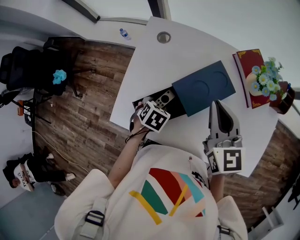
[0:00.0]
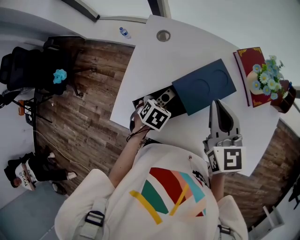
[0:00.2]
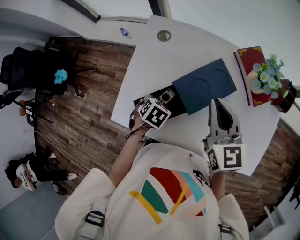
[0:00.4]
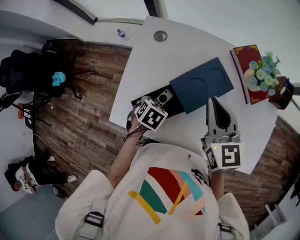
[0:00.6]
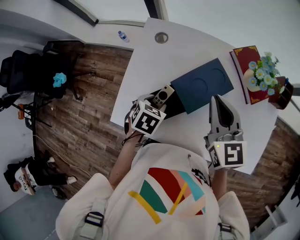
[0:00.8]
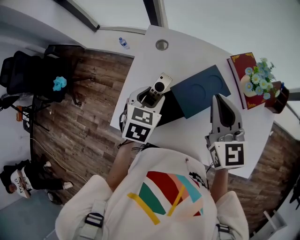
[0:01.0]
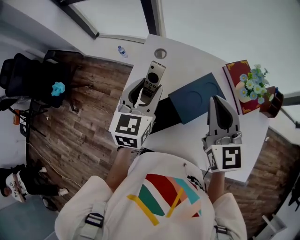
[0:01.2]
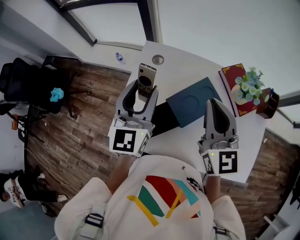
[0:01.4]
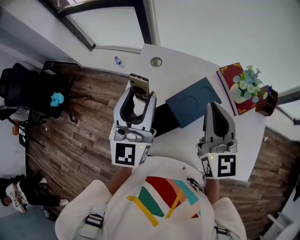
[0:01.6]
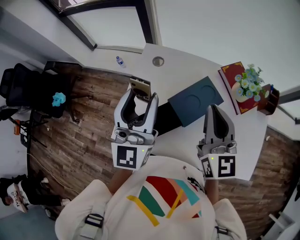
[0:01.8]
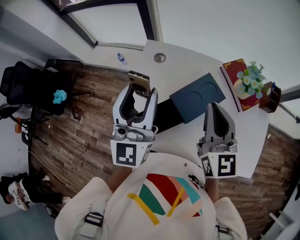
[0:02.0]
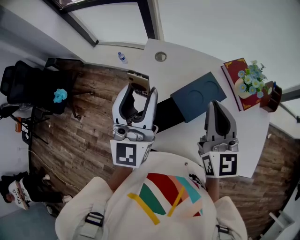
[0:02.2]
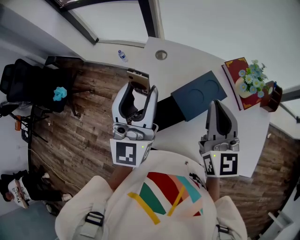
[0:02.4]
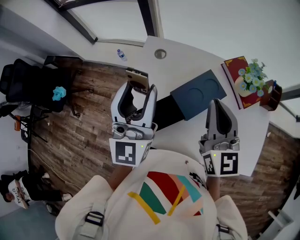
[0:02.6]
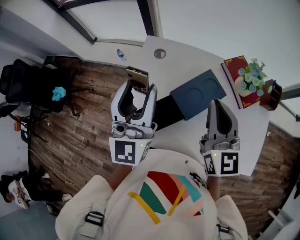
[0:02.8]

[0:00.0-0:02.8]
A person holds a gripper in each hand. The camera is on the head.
0:00.0 to 0:01.4: The right gripper moves upward, roughly 10 cm. Meanwhile the left gripper shifts approximately 30 cm upward, and angles its fingers upward, by roughly 70 degrees.
0:01.4 to 0:02.8: The left gripper ends up about 5 cm from where it was.

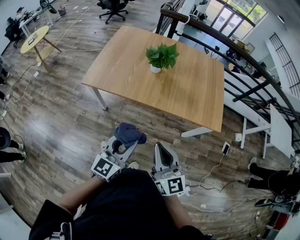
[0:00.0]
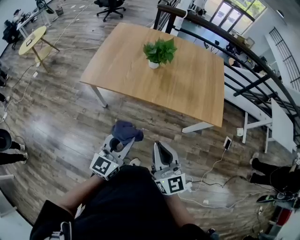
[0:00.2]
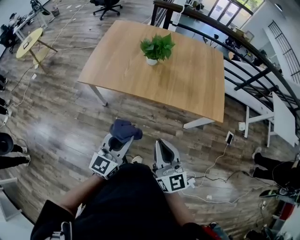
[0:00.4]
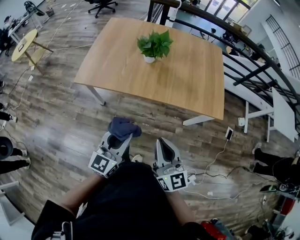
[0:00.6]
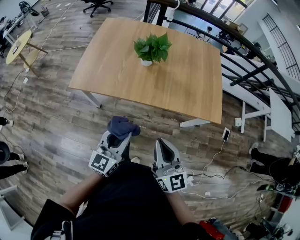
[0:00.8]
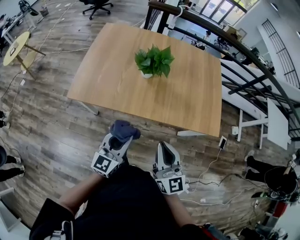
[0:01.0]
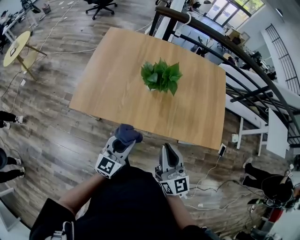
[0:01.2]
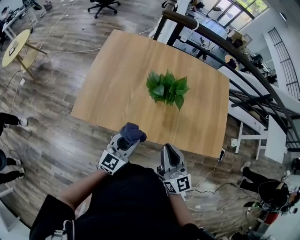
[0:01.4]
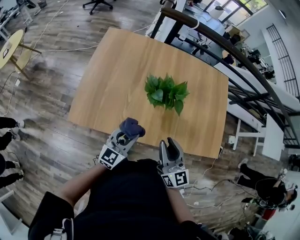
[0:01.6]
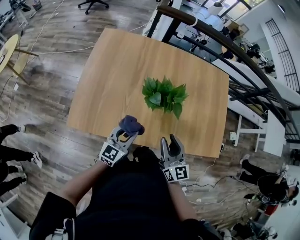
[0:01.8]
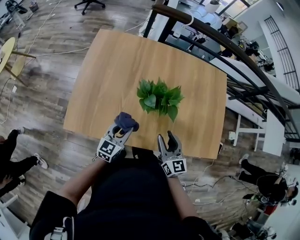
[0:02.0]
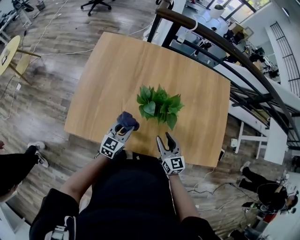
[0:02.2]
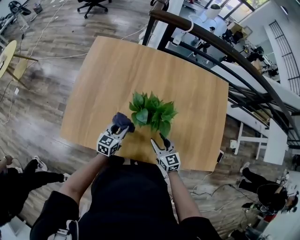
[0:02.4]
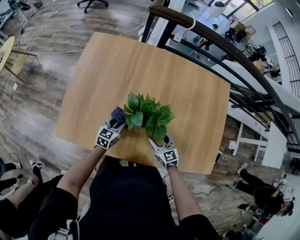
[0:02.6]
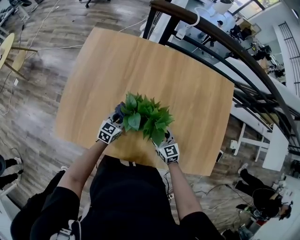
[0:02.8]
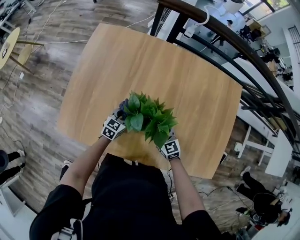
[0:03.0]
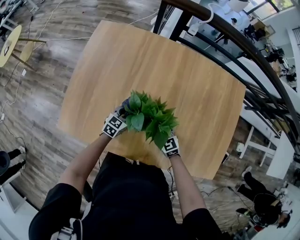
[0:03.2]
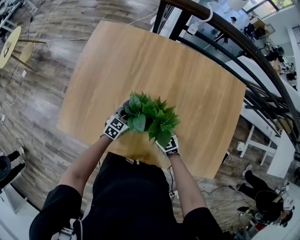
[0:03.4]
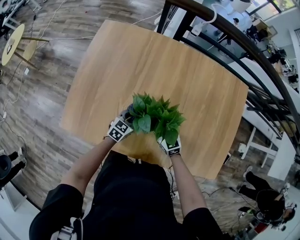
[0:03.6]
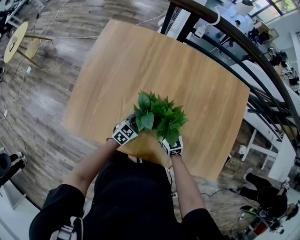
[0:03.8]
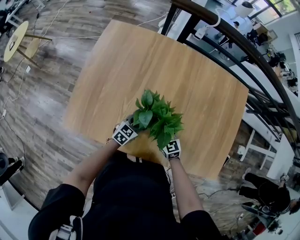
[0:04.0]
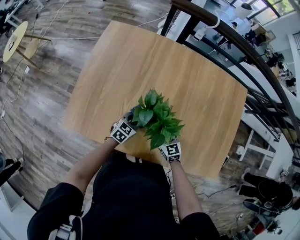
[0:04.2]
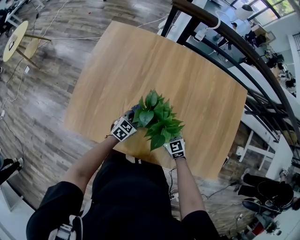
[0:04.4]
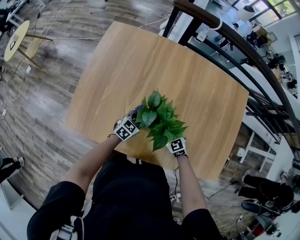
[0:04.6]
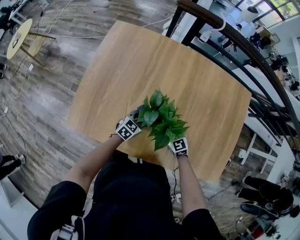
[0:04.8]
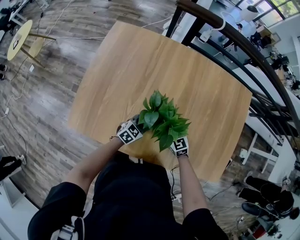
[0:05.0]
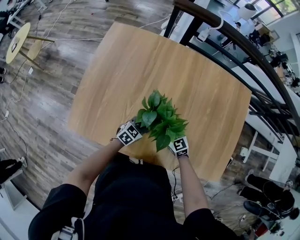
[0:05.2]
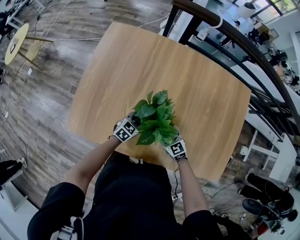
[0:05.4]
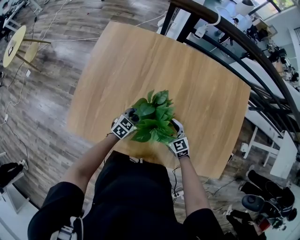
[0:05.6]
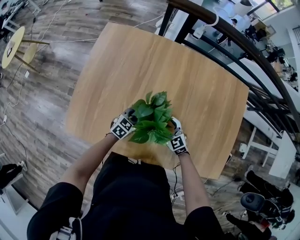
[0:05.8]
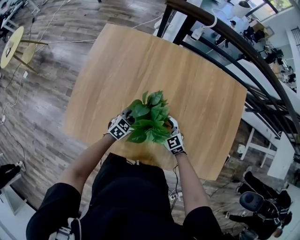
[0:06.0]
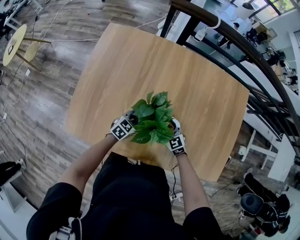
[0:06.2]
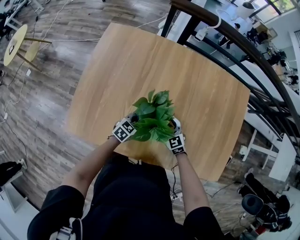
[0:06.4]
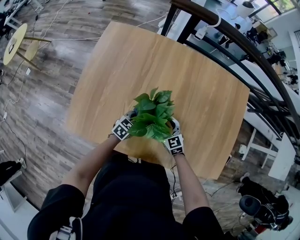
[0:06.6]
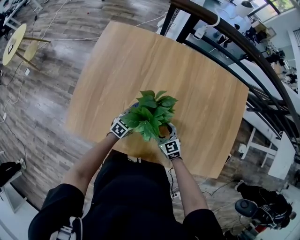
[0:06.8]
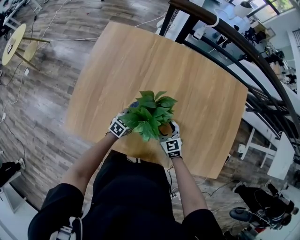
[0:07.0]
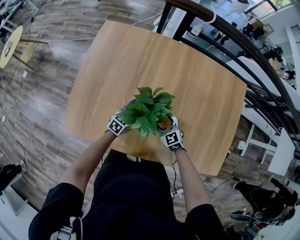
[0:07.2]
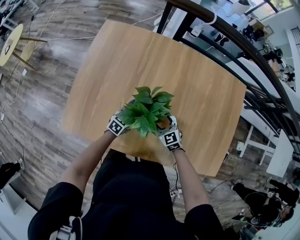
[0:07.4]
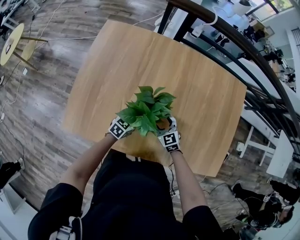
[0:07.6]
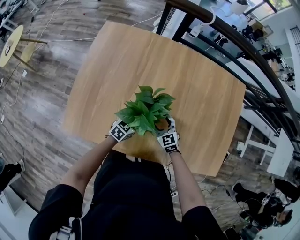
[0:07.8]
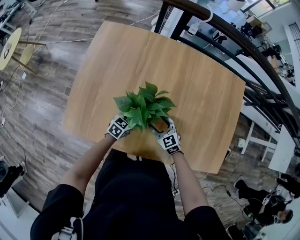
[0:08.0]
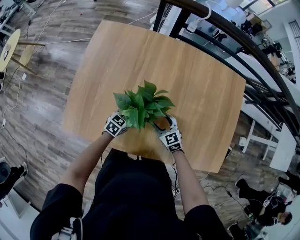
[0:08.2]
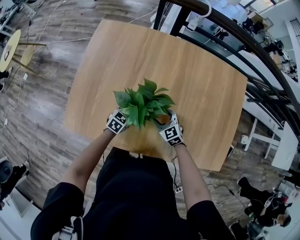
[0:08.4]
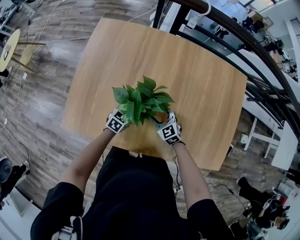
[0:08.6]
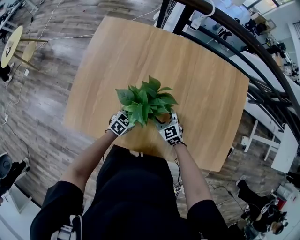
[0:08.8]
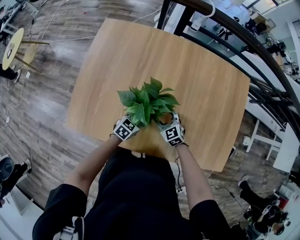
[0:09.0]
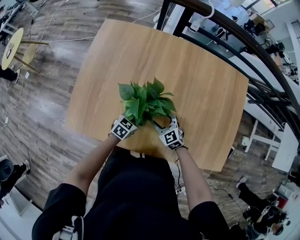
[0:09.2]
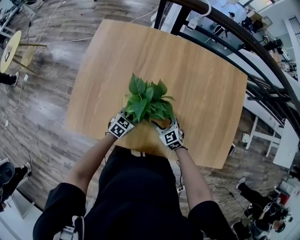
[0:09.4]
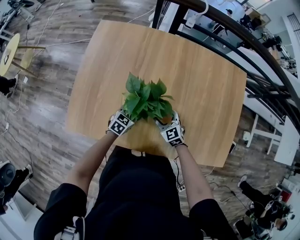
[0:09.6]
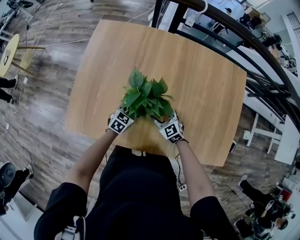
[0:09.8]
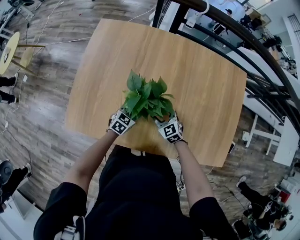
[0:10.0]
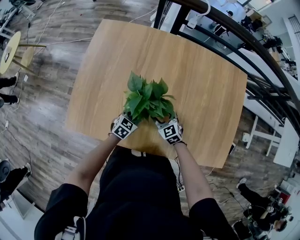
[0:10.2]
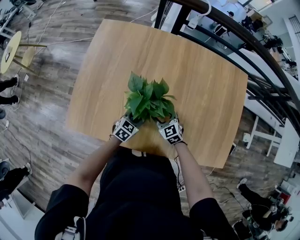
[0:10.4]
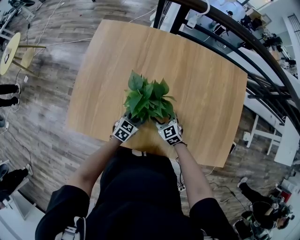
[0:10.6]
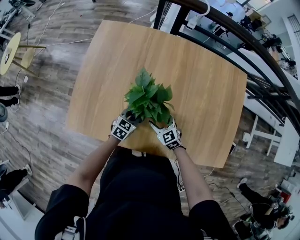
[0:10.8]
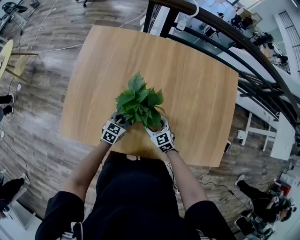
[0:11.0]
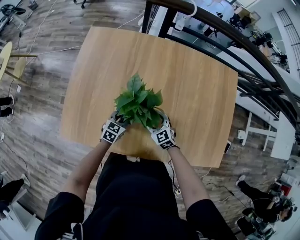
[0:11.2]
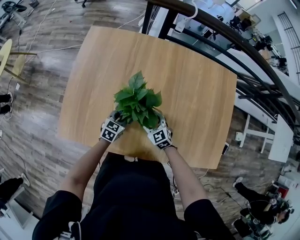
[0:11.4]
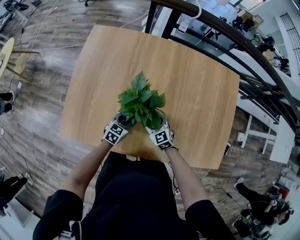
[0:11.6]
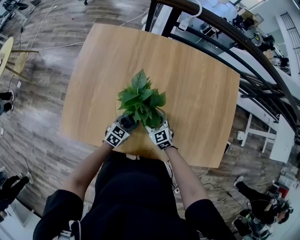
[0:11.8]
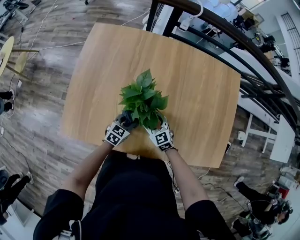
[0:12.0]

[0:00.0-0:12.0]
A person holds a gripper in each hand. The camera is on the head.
0:00.0 to 0:01.6: The two grippers go about 30 cm forward.
0:01.6 to 0:03.0: The two grippers go some 30 cm downward and forward. The left gripper turns by roughly 30 degrees. Meanwhile the right gripper turns by about 40 degrees, and opens its fingers.
0:04.4 to 0:12.0: There are only small adjustments of the grippers.

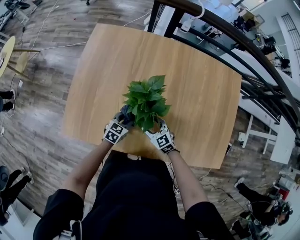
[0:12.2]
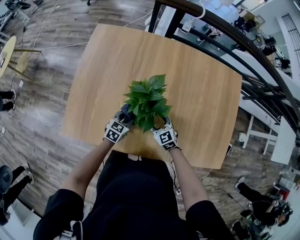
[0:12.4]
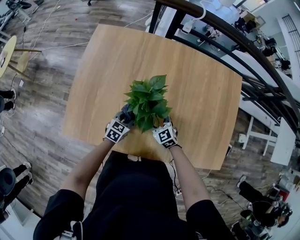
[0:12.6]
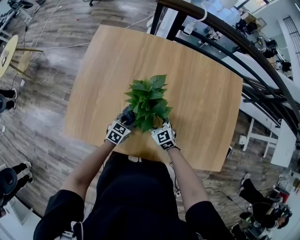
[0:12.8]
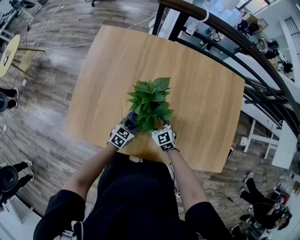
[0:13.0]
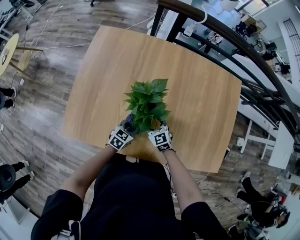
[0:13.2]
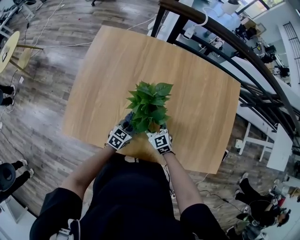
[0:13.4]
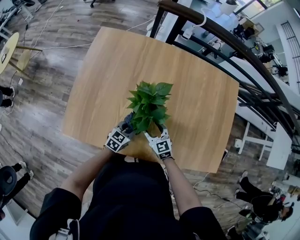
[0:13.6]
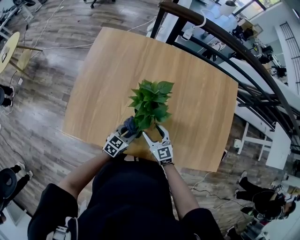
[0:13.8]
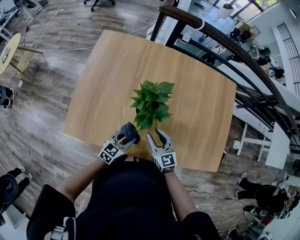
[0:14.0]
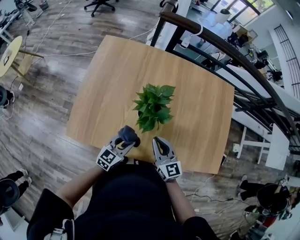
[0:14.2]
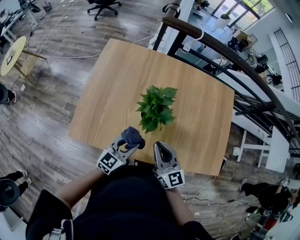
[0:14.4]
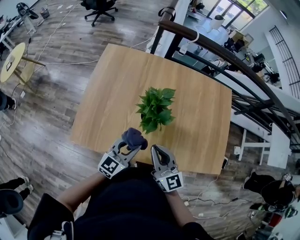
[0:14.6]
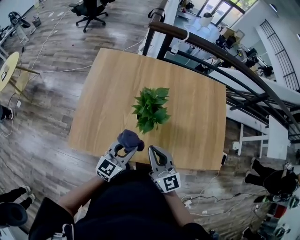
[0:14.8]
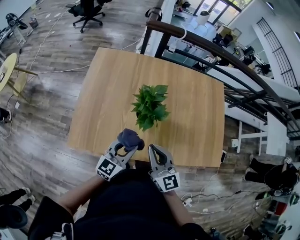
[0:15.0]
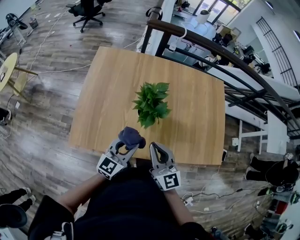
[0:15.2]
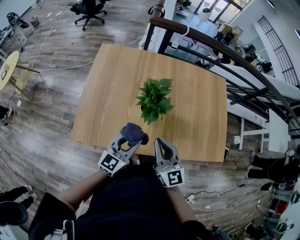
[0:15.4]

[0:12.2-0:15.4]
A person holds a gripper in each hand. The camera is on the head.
0:12.2 to 0:13.8: The left gripper travels backward by some 5 cm. Meanwhile the right gripper shifts approximately 5 cm upward.
0:13.8 to 0:15.4: The right gripper moves upward and backward, about 20 cm, changes its angle by approximately 30 degrees, and closes. The left gripper moves upward, about 20 cm, and changes its angle by some 30 degrees.

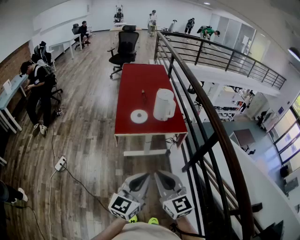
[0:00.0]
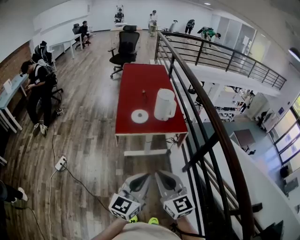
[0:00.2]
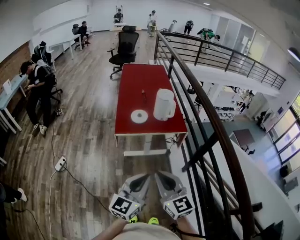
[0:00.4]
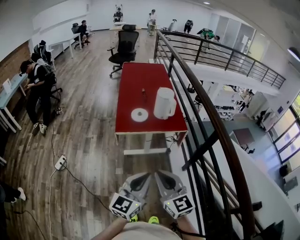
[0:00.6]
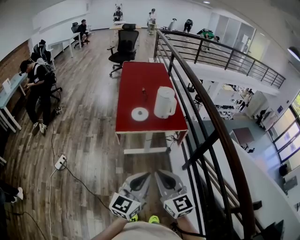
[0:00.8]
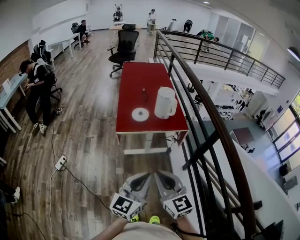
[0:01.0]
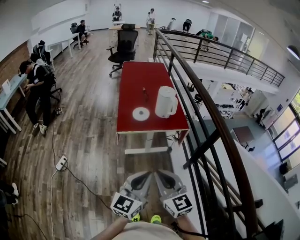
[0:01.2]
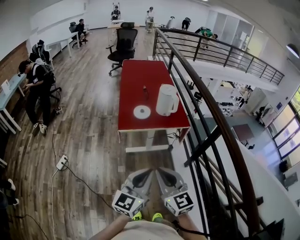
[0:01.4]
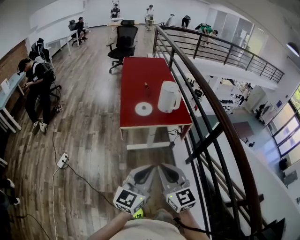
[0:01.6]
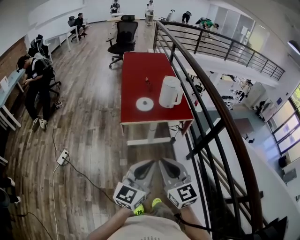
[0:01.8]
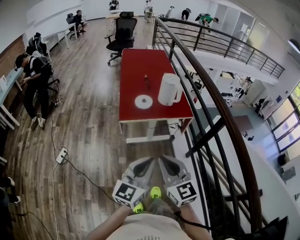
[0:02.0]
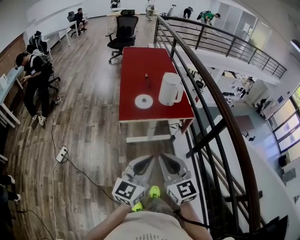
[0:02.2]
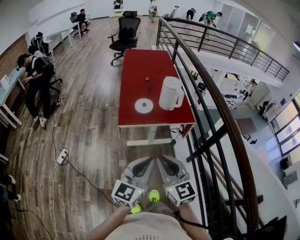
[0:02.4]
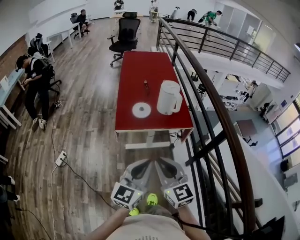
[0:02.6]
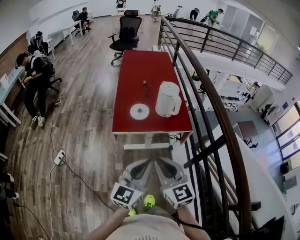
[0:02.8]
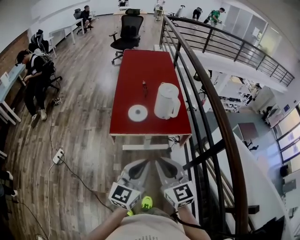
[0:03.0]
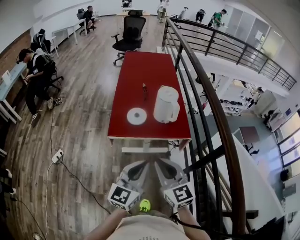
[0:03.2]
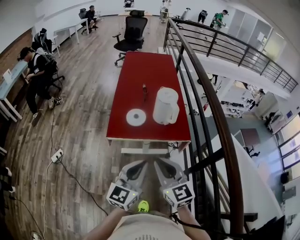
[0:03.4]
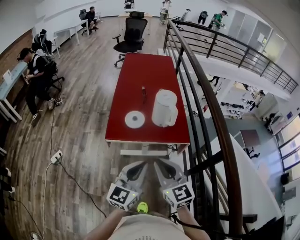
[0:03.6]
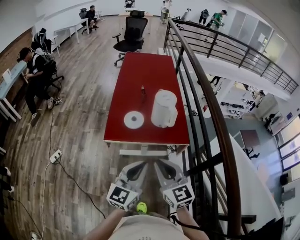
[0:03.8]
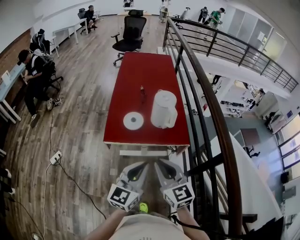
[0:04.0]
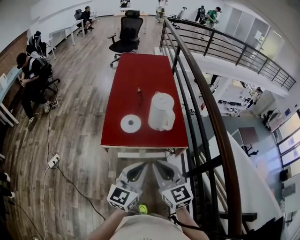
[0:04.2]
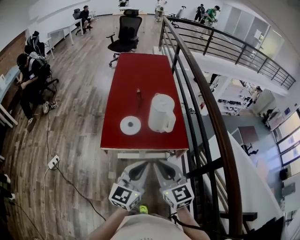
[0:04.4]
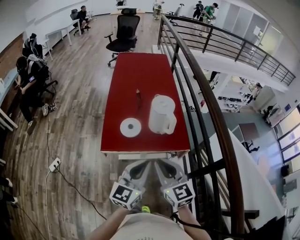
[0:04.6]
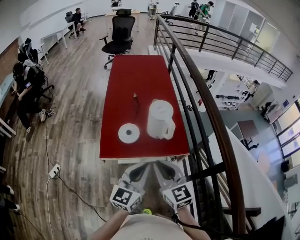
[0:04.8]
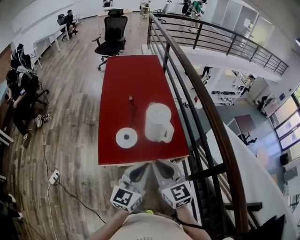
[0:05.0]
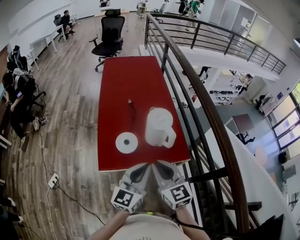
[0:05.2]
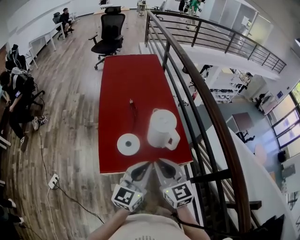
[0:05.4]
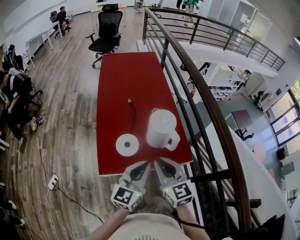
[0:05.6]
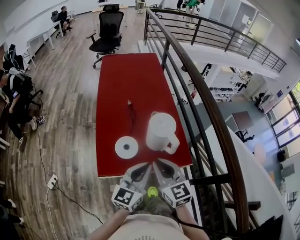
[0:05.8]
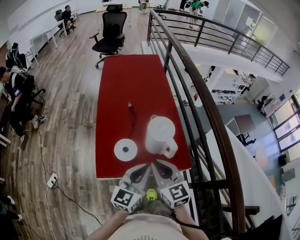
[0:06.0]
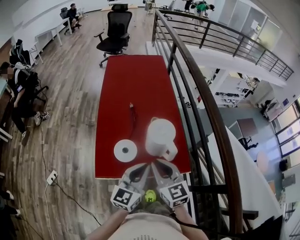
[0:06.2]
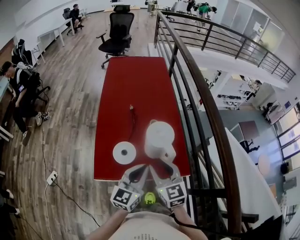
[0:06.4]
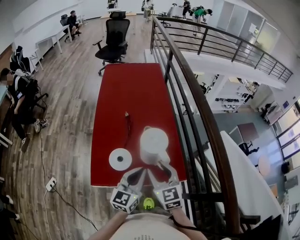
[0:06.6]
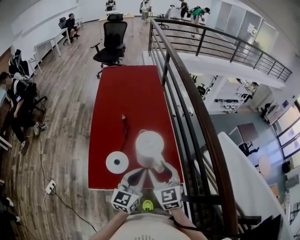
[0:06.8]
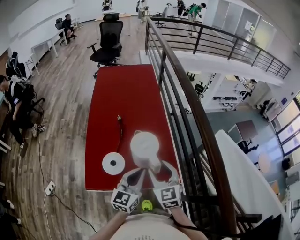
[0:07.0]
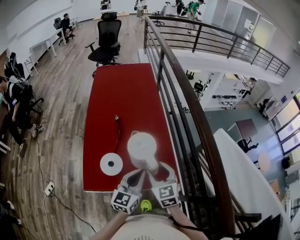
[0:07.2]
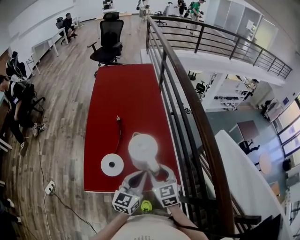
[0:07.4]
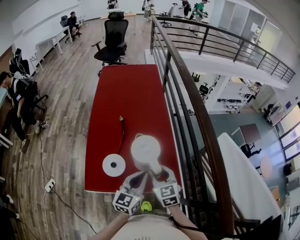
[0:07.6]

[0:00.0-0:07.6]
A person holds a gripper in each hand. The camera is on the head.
0:00.0 to 0:01.6: The grippers move only a little.
0:01.6 to 0:03.0: The right gripper is displaced forward and to the right by approximately 15 cm, while the left gripper travels forward by about 15 cm.
0:03.0 to 0:04.6: Both grippers move forward, some 15 cm.
0:04.6 to 0:06.0: Both grippers travel together forward, roughly 15 cm.
0:06.0 to 0:07.6: The left gripper heads forward, to the right and downward, covering some 10 cm, while the right gripper is displaced downward, forward and to the right by approximately 15 cm, and opens its fingers.
